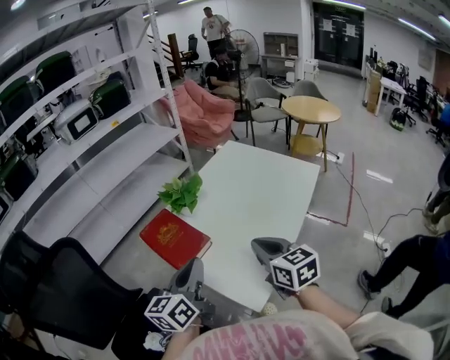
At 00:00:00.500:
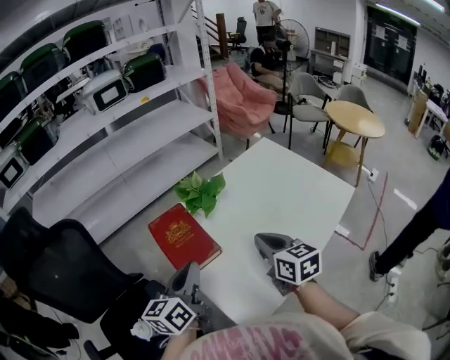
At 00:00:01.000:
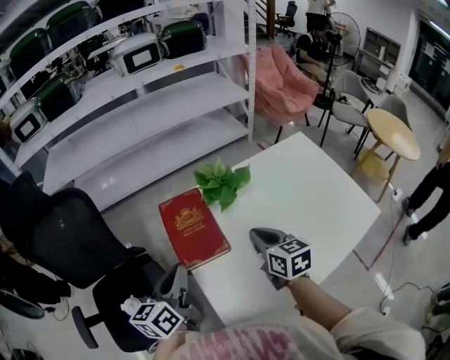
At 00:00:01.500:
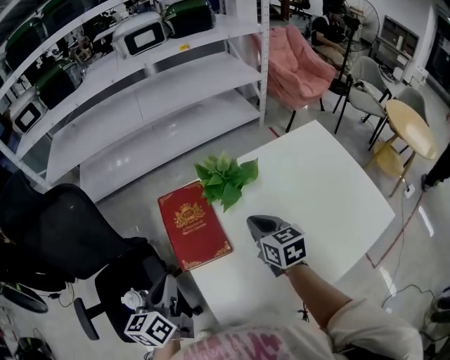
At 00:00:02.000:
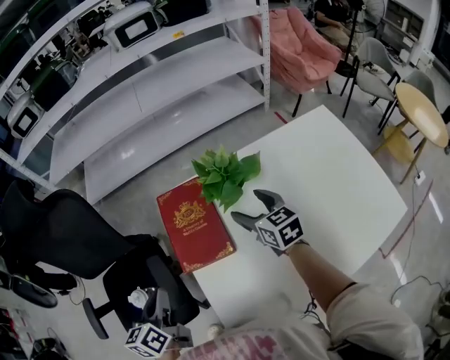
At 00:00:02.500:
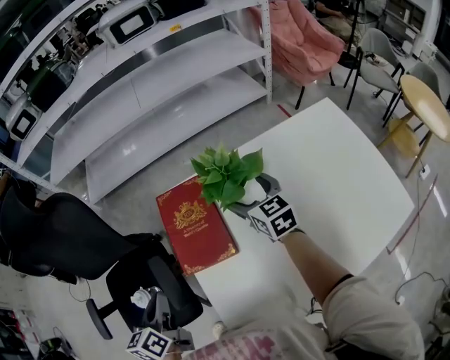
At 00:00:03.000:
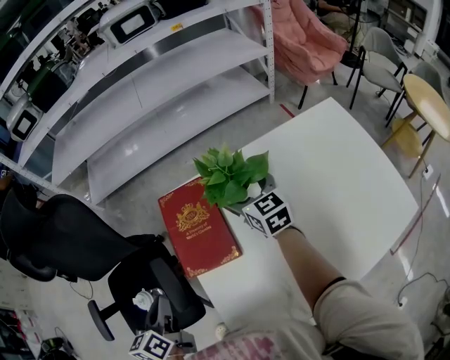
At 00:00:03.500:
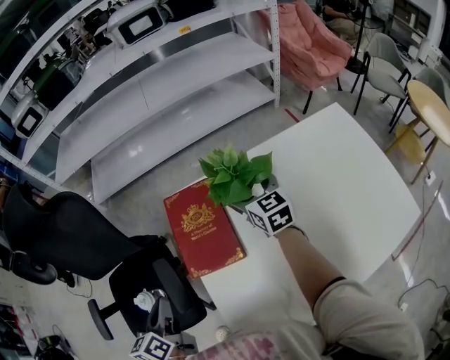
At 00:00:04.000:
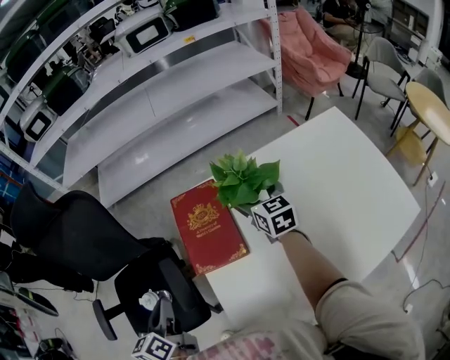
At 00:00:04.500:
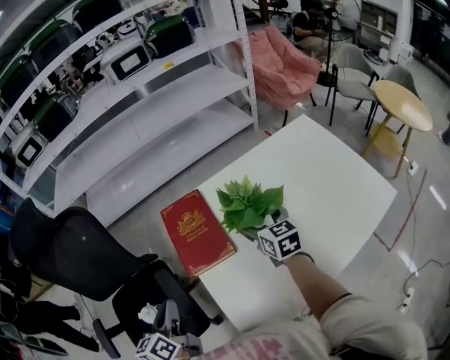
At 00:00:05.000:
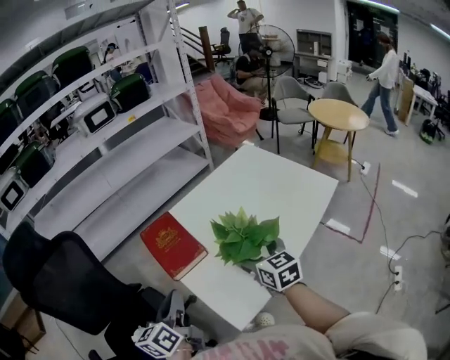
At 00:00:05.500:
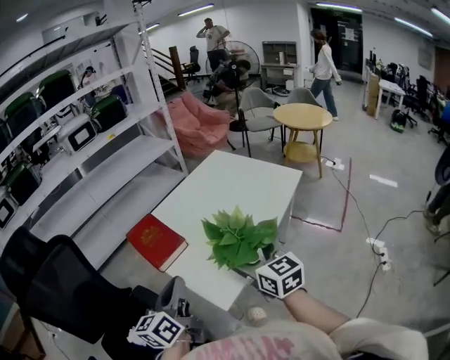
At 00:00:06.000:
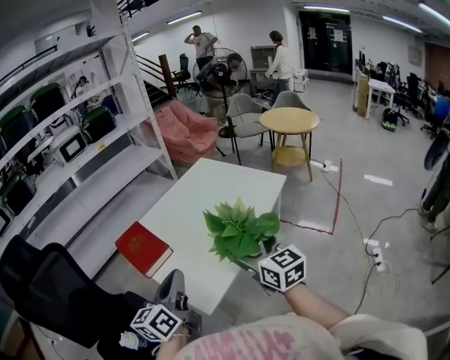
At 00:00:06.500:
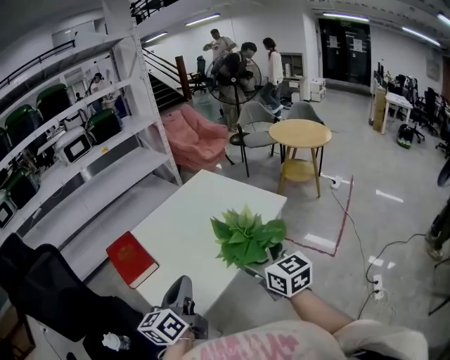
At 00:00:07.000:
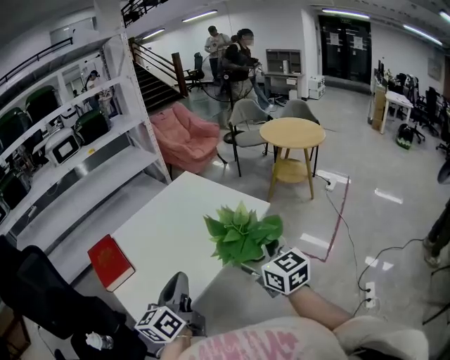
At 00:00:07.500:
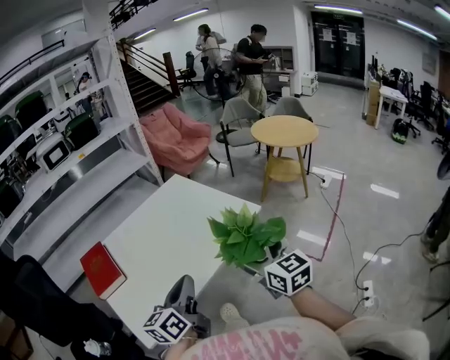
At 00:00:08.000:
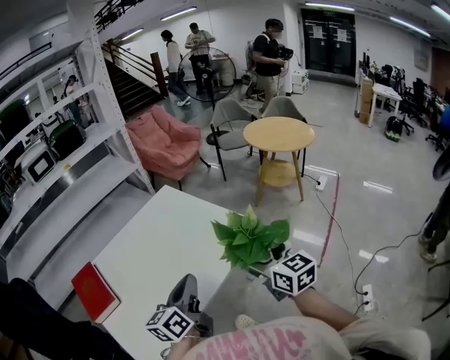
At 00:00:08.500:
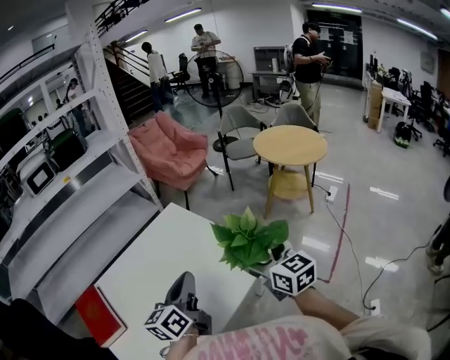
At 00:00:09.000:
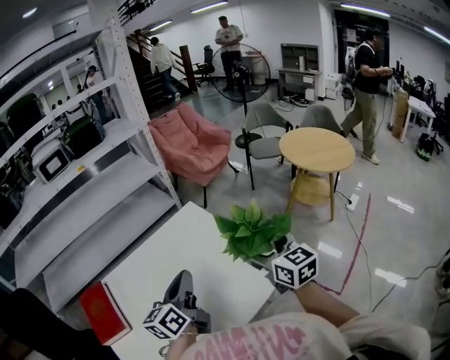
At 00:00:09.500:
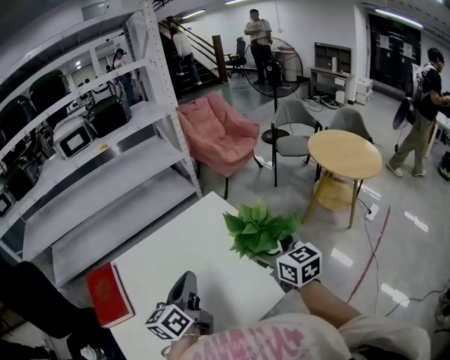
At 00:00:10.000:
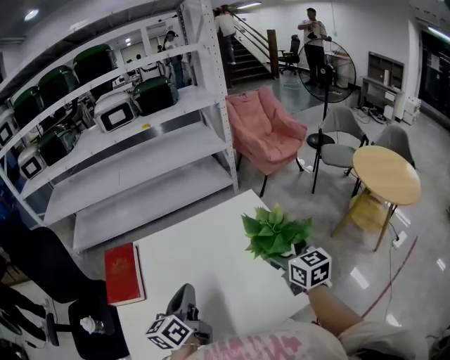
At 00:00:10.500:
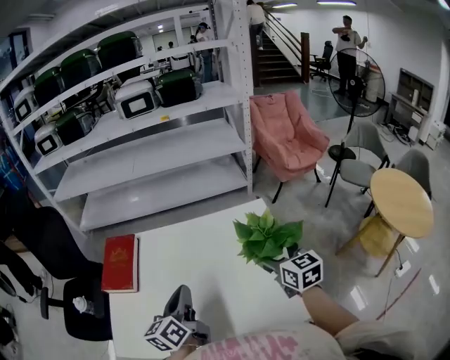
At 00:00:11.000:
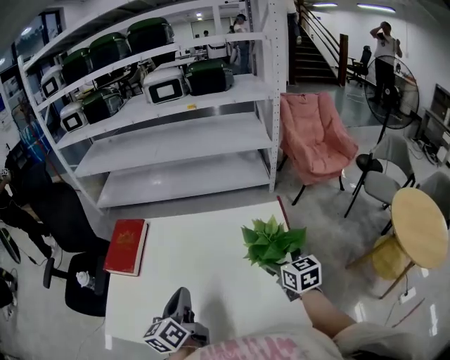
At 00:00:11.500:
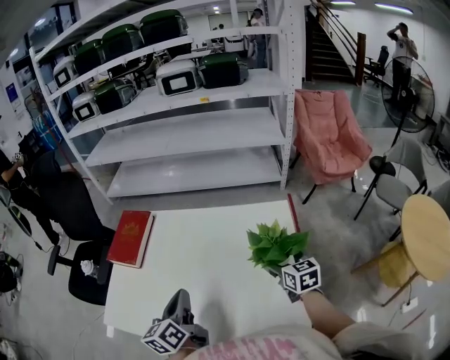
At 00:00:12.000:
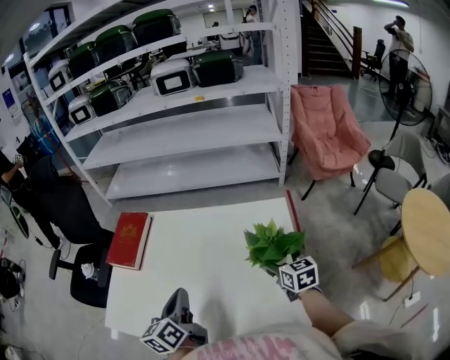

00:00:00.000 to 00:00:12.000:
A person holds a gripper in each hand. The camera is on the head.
00:00:00.000 to 00:00:02.000: The right gripper ends up some 30 cm from where it was, rotates some 40 degrees, and opens its fingers; the left gripper shifts by about 15 cm, and swivels roughly 50 degrees.
00:00:02.000 to 00:00:04.000: The right gripper travels forward by approximately 5 cm.
00:00:04.000 to 00:00:06.000: The right gripper changes place by some 50 cm, and turns by some 30 degrees. Meanwhile the left gripper changes place by roughly 30 cm, and swivels roughly 60 degrees.
00:00:06.000 to 00:00:08.000: Both grippers move to the right and forward, some 35 cm.
00:00:08.000 to 00:00:10.000: The right gripper ends up approximately 30 cm from where it was, and swivels approximately 20 degrees. Meanwhile the left gripper moves about 20 cm, and swivels approximately 40 degrees.
00:00:10.000 to 00:00:12.000: The right gripper is displaced downward by about 10 cm, and turns by about 30 degrees. Meanwhile the left gripper turns by approximately 30 degrees.

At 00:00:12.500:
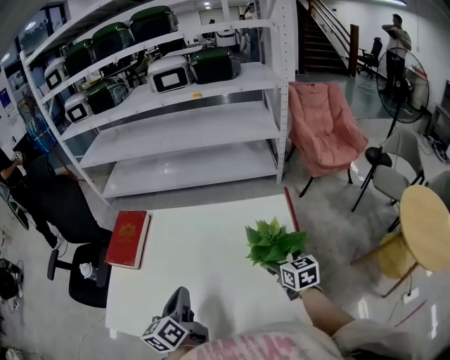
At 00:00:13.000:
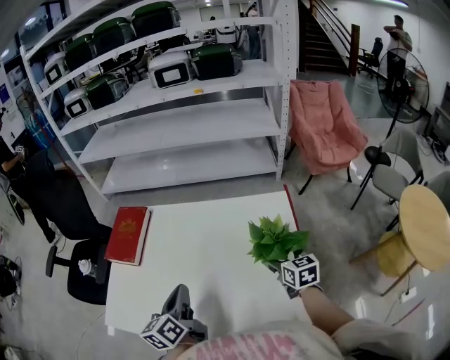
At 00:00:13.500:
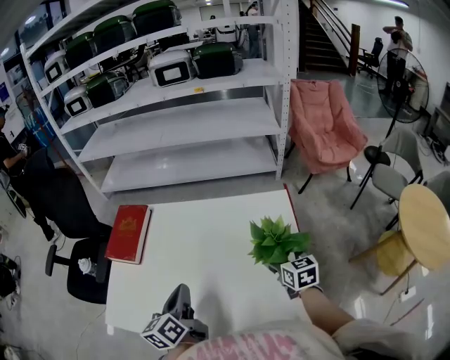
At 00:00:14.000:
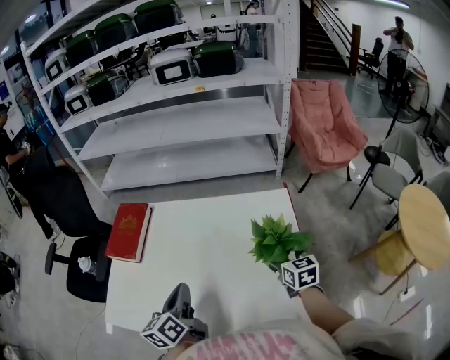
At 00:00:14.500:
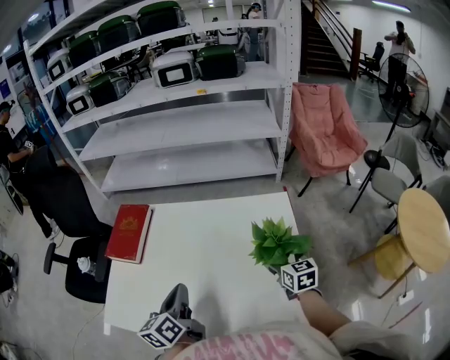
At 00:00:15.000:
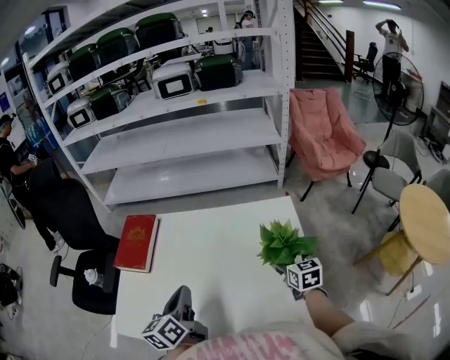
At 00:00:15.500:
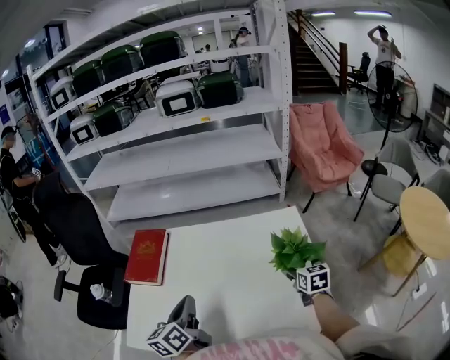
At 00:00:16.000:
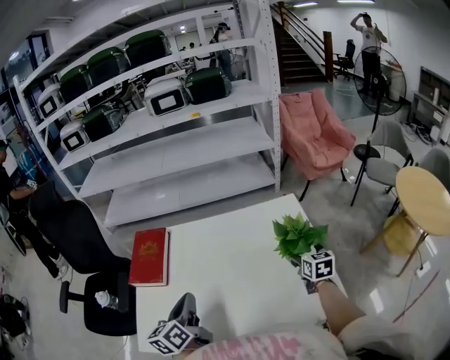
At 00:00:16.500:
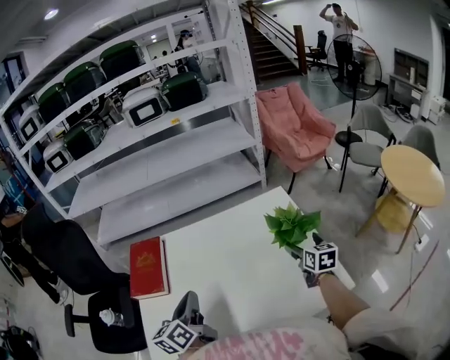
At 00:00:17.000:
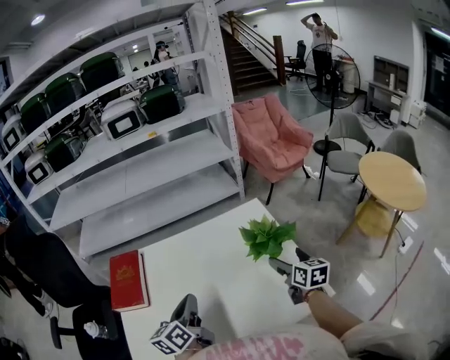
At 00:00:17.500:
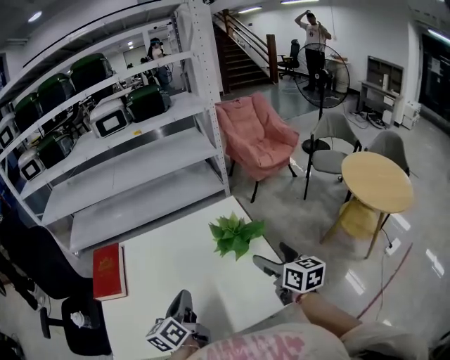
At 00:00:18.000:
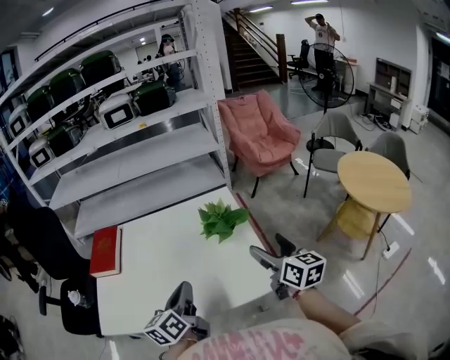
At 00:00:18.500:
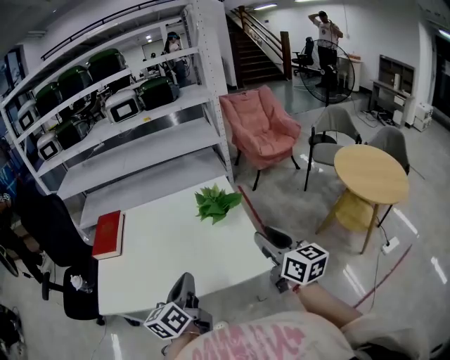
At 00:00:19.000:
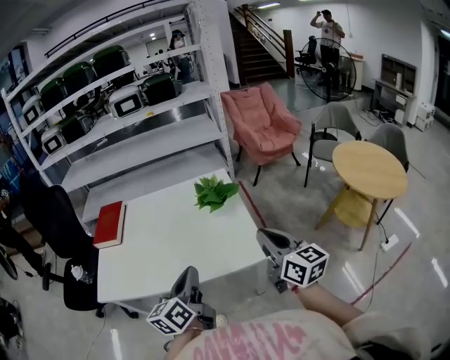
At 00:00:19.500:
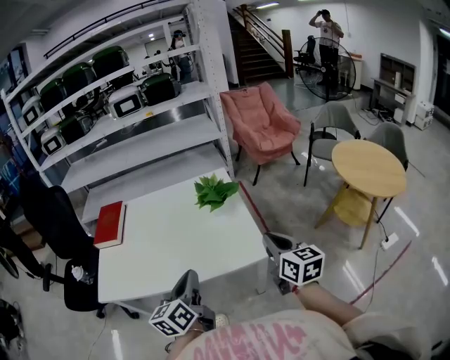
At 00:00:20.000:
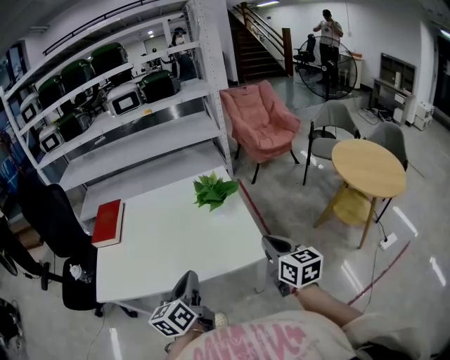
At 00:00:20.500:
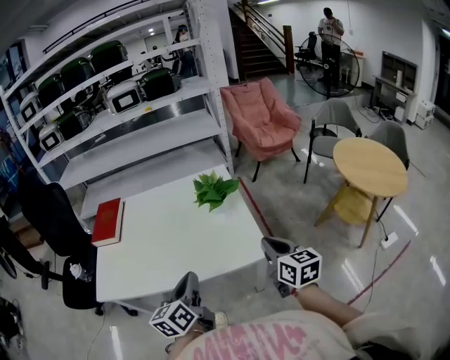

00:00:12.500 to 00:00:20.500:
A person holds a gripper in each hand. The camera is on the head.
00:00:12.500 to 00:00:14.500: The grippers move only a little.
00:00:14.500 to 00:00:16.500: The right gripper swivels some 30 degrees. The left gripper moves to the left, approximately 10 cm.
00:00:16.500 to 00:00:18.500: The right gripper goes approximately 30 cm backward, upward and to the right, changes its angle by some 30 degrees, and closes. Meanwhile the left gripper shifts about 30 cm to the right and backward.
00:00:18.500 to 00:00:20.500: The right gripper is displaced downward by some 5 cm; the left gripper changes place by roughly 5 cm.

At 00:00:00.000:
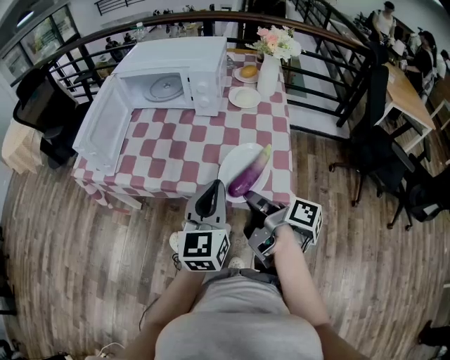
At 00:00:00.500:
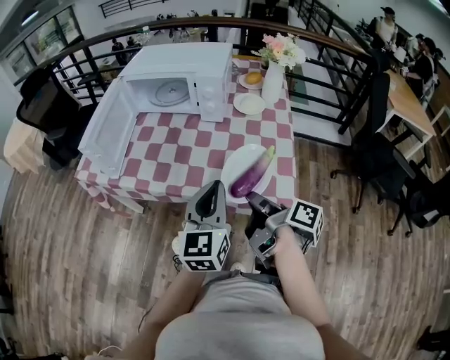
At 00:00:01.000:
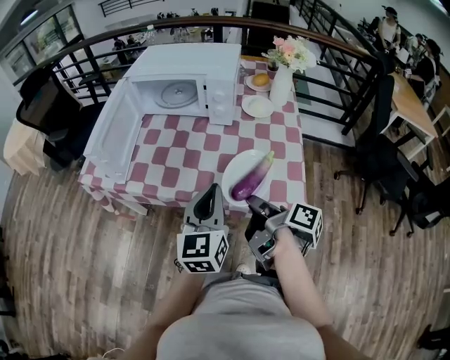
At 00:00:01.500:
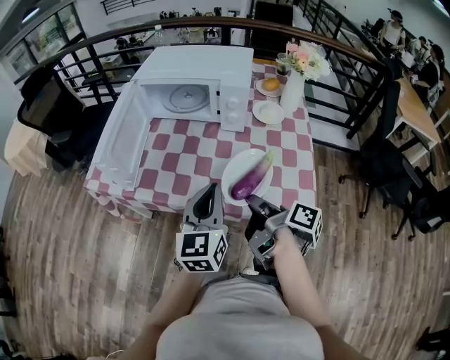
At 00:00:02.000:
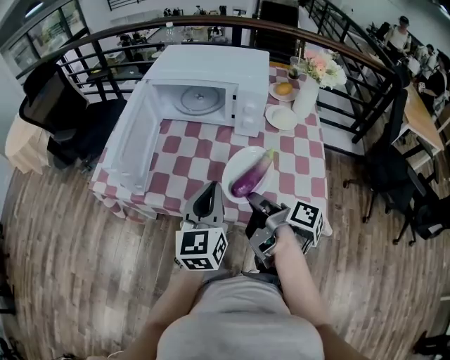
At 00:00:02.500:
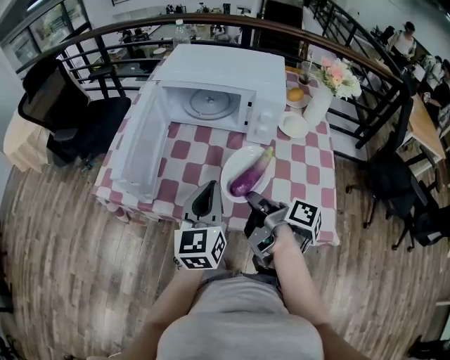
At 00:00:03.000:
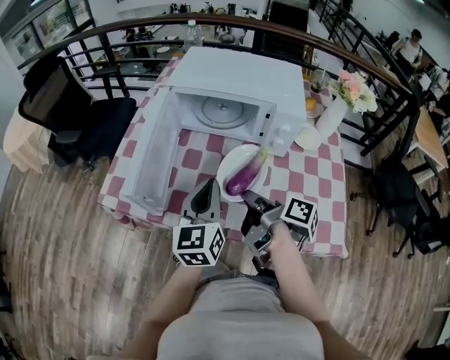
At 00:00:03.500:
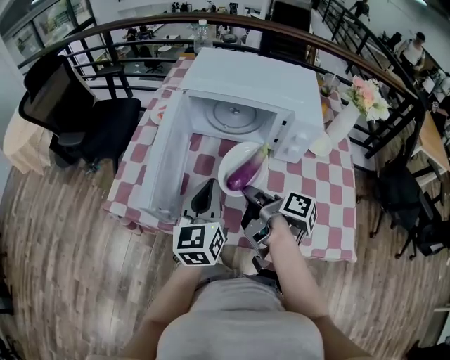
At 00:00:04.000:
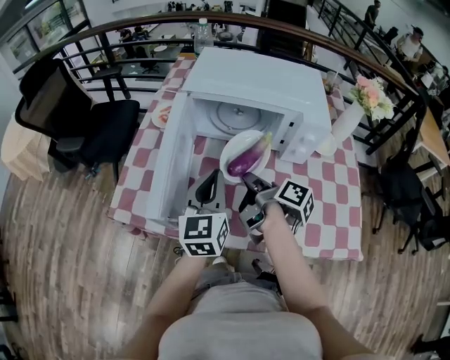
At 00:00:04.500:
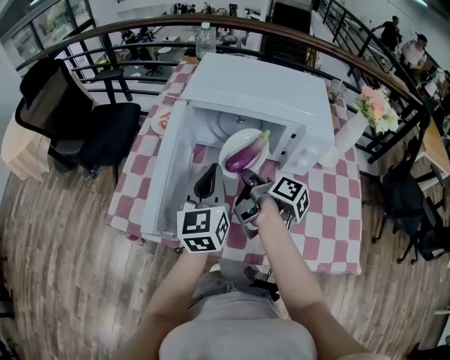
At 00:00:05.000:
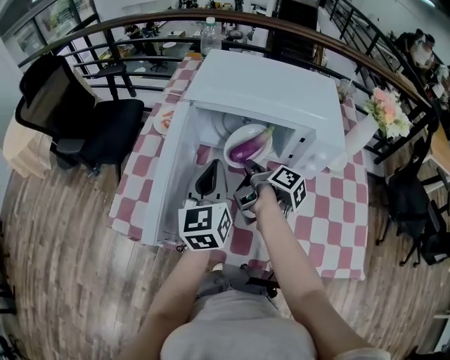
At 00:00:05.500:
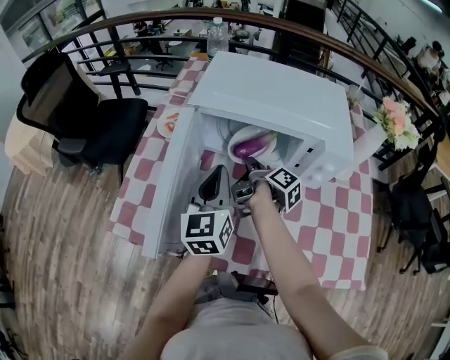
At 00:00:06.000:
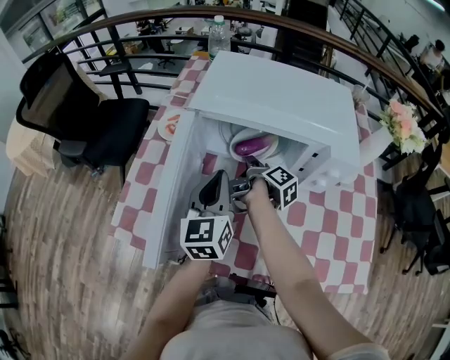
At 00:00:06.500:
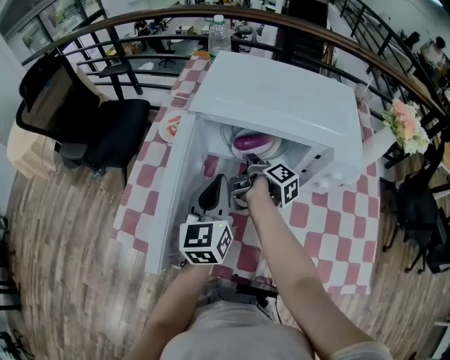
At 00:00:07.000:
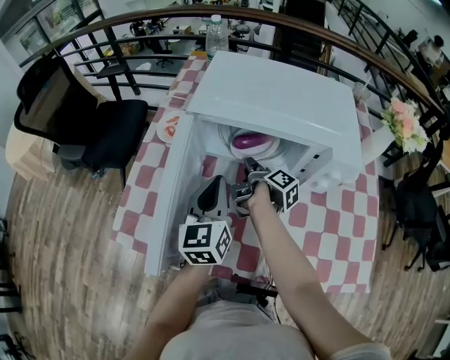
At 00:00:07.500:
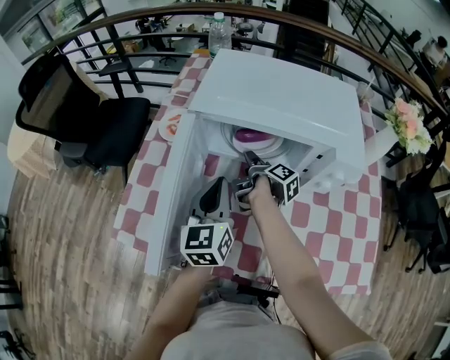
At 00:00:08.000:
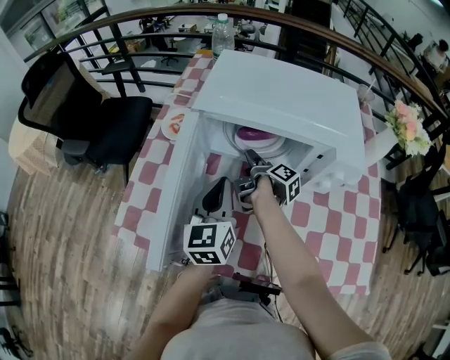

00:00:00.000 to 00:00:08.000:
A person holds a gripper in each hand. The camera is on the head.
00:00:00.000 to 00:00:02.000: The left gripper shifts by approximately 20 cm.
00:00:02.000 to 00:00:04.000: The left gripper ends up approximately 25 cm from where it was.
00:00:04.000 to 00:00:06.000: The left gripper changes place by roughly 10 cm.
